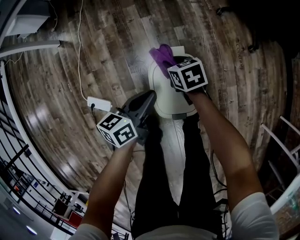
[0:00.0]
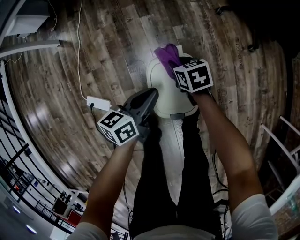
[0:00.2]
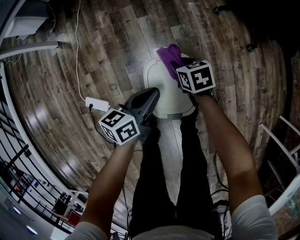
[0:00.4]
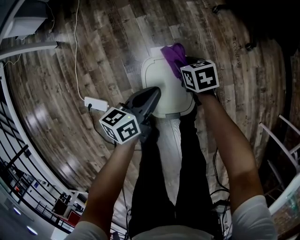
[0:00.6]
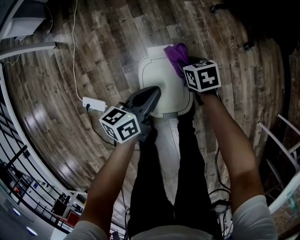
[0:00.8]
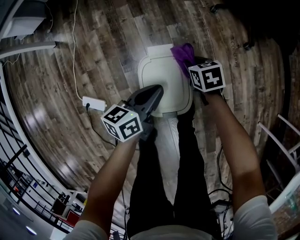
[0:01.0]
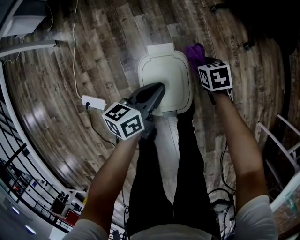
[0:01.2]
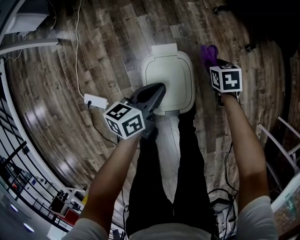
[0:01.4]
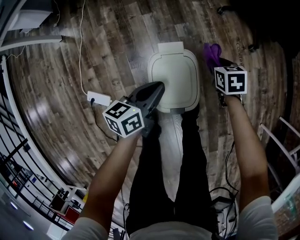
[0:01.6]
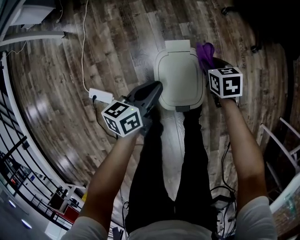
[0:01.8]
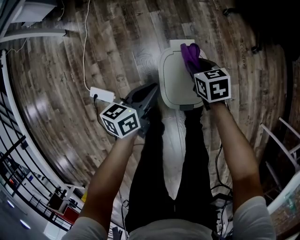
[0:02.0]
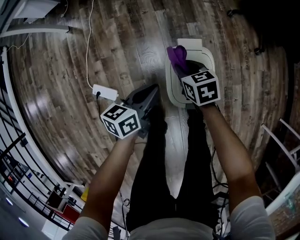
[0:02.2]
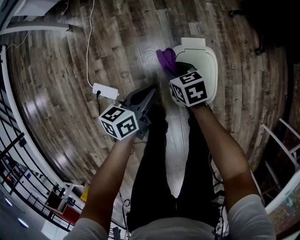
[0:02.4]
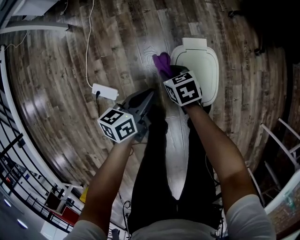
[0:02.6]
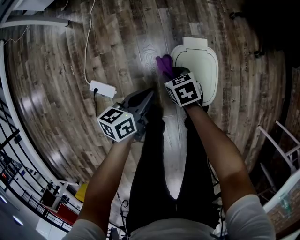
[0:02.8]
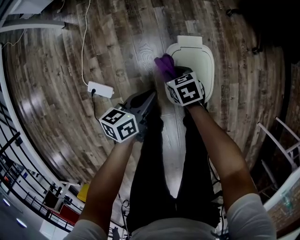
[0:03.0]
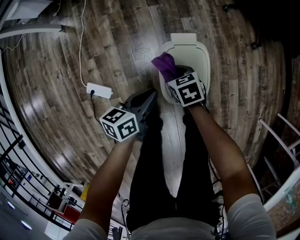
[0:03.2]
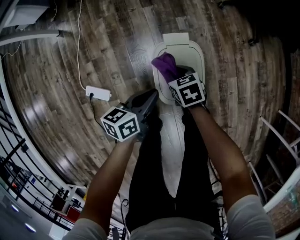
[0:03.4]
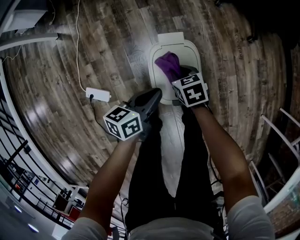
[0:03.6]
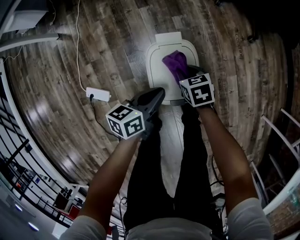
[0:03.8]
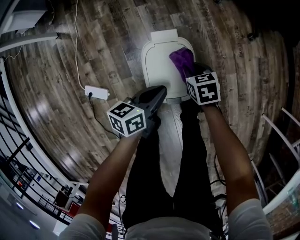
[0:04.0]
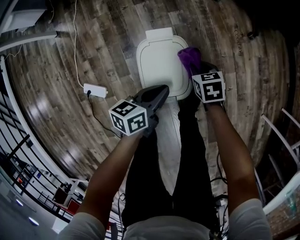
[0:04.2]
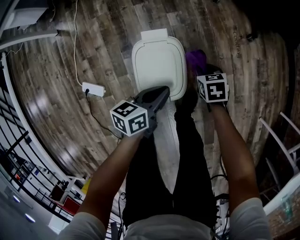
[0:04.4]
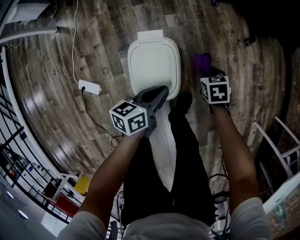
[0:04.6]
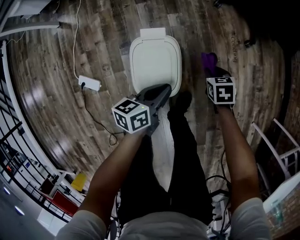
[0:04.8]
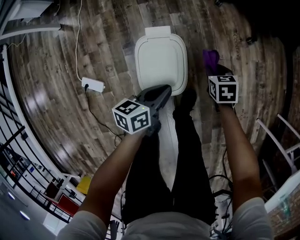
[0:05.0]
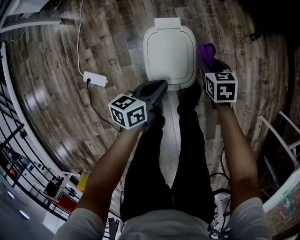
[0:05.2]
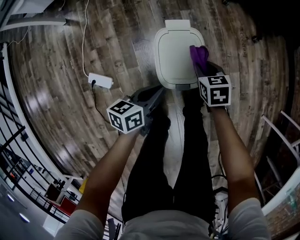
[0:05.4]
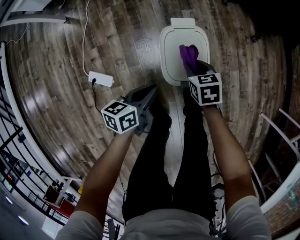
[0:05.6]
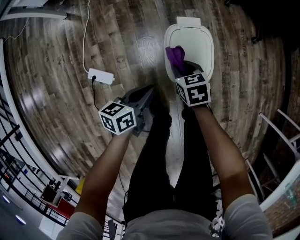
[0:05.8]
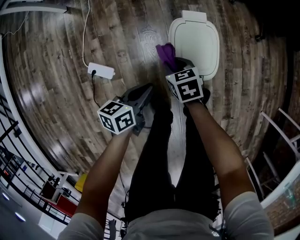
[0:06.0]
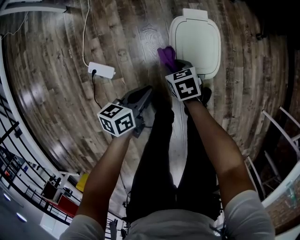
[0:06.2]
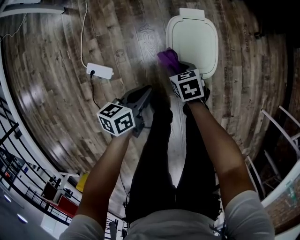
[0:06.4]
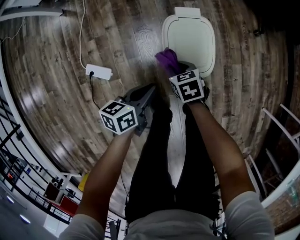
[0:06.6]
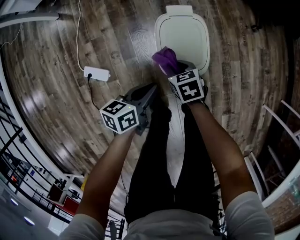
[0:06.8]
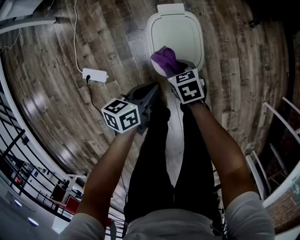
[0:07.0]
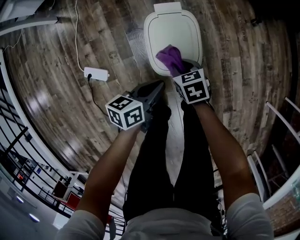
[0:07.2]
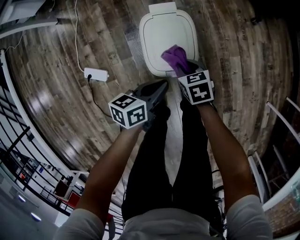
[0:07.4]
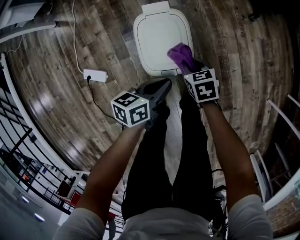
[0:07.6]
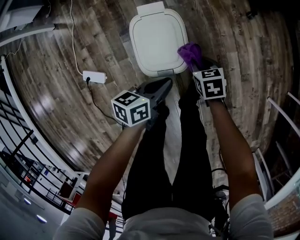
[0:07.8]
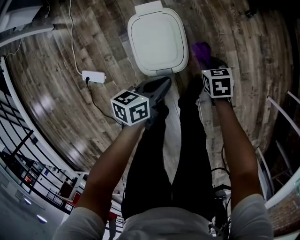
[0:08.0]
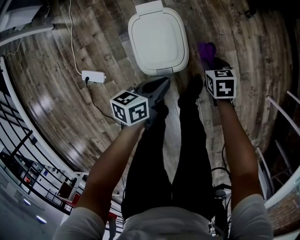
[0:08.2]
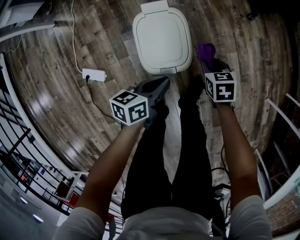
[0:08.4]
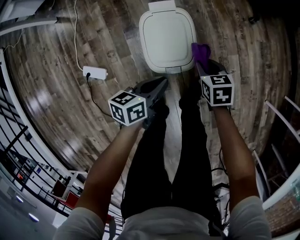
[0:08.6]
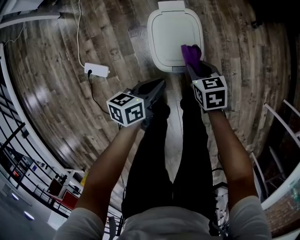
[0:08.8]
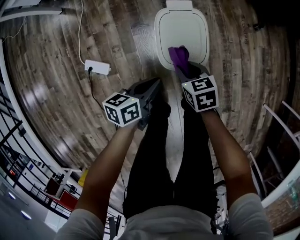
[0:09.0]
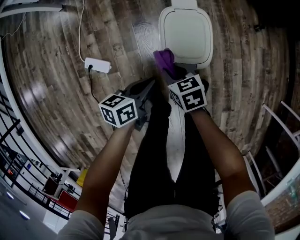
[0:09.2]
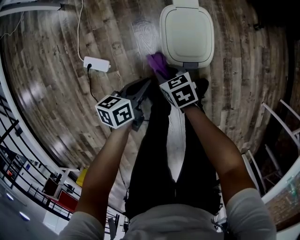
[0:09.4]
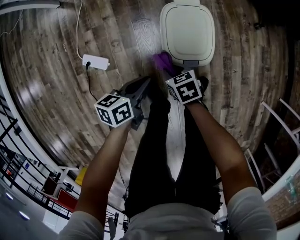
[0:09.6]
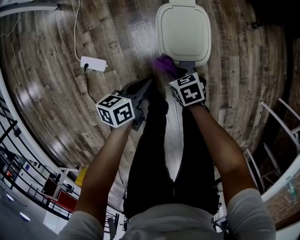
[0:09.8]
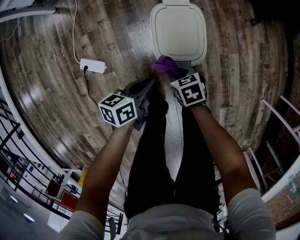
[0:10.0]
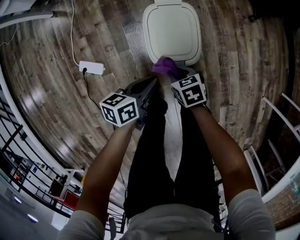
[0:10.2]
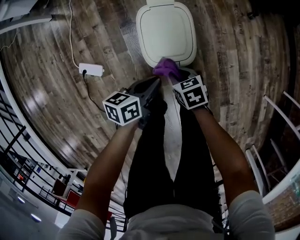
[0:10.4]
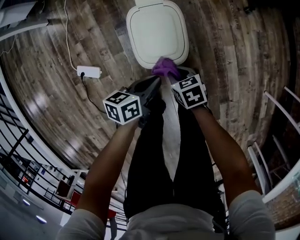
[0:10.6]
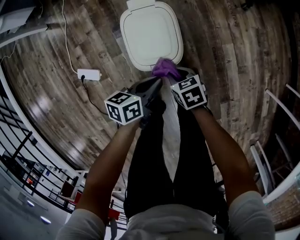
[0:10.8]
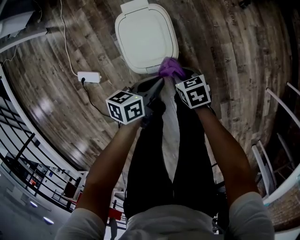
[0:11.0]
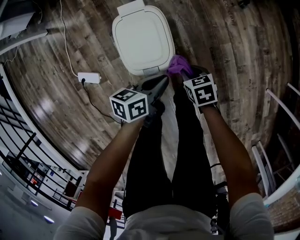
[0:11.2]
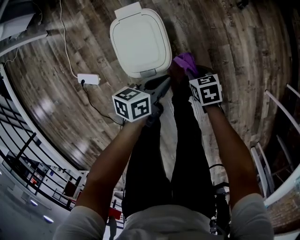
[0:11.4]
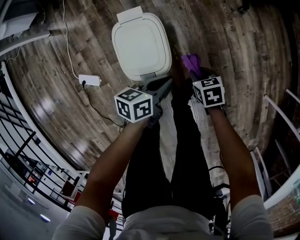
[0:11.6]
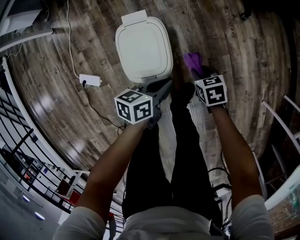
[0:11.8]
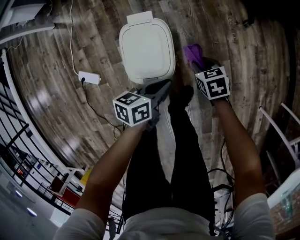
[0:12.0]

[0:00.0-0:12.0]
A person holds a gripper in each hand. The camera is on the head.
0:01.6 to 0:03.0: The left gripper shifts by about 10 cm.
0:03.0 to 0:04.4: The left gripper changes place by roughly 20 cm.
0:04.4 to 0:06.0: The left gripper shifts by about 25 cm.
0:06.0 to 0:07.6: The left gripper moves about 20 cm.
0:07.6 to 0:09.0: The left gripper moves roughly 10 cm.
0:09.0 to 0:10.4: The left gripper moves approximately 5 cm.
0:10.4 to 0:12.0: The left gripper shifts by some 15 cm.

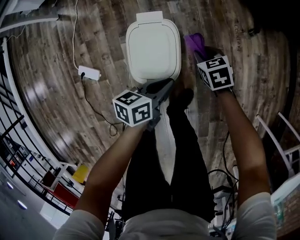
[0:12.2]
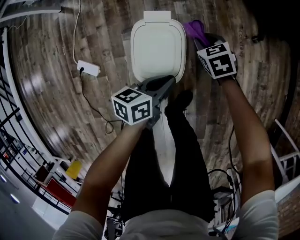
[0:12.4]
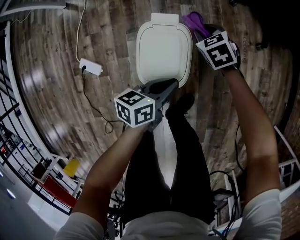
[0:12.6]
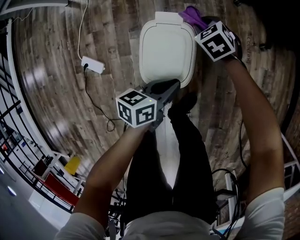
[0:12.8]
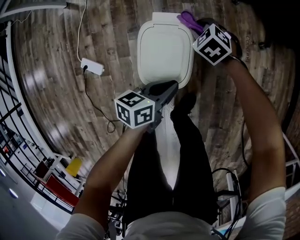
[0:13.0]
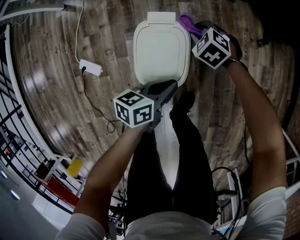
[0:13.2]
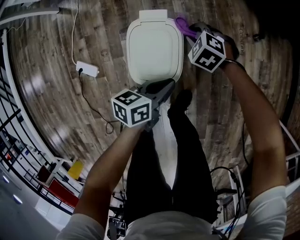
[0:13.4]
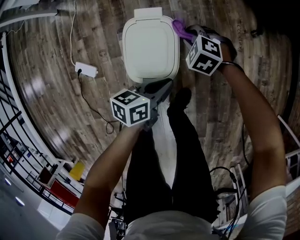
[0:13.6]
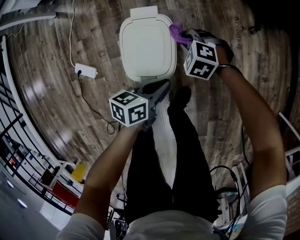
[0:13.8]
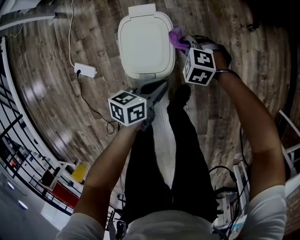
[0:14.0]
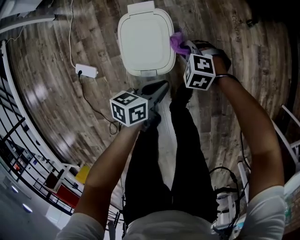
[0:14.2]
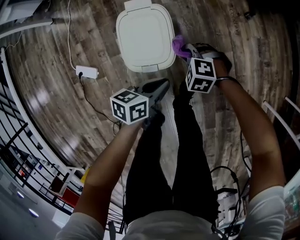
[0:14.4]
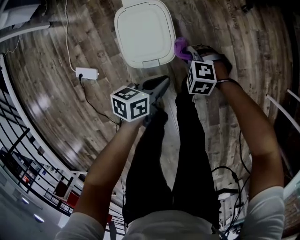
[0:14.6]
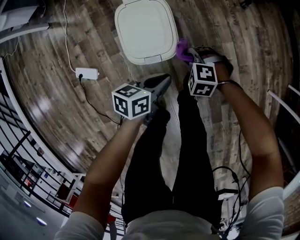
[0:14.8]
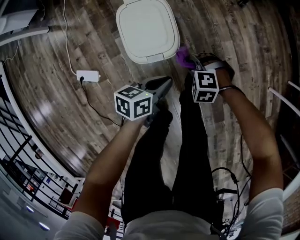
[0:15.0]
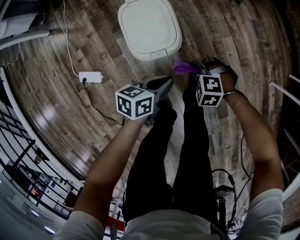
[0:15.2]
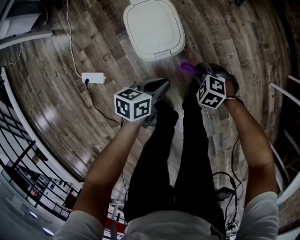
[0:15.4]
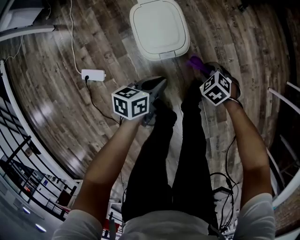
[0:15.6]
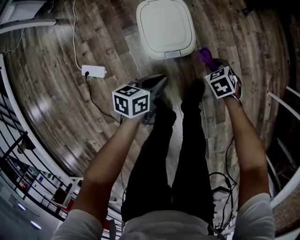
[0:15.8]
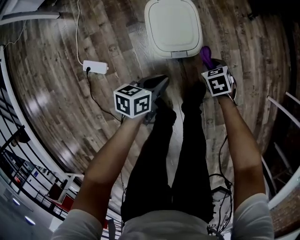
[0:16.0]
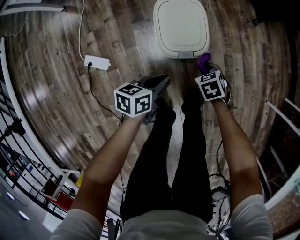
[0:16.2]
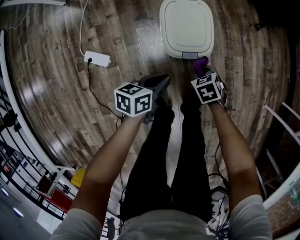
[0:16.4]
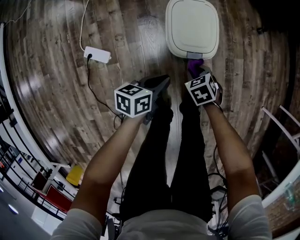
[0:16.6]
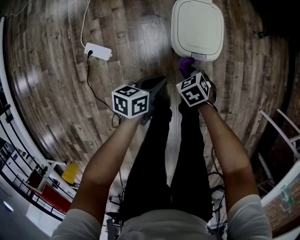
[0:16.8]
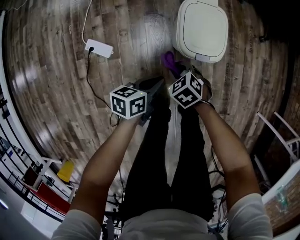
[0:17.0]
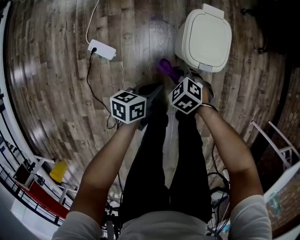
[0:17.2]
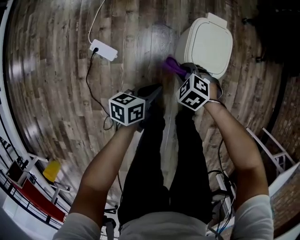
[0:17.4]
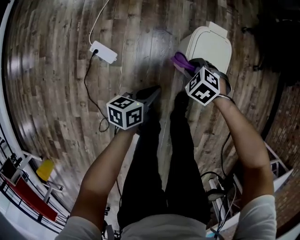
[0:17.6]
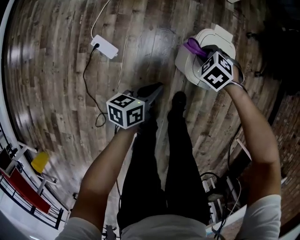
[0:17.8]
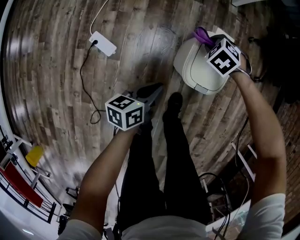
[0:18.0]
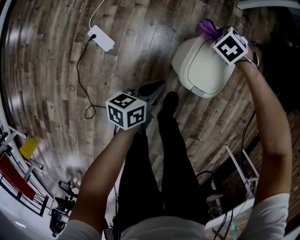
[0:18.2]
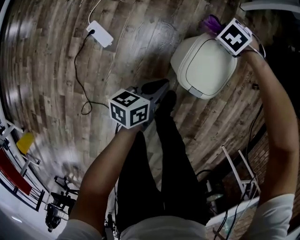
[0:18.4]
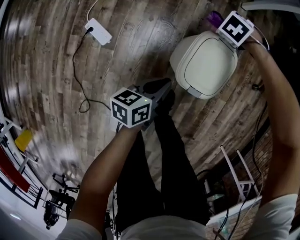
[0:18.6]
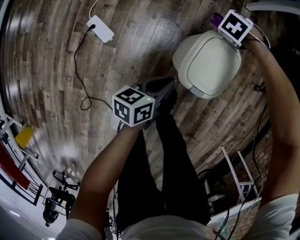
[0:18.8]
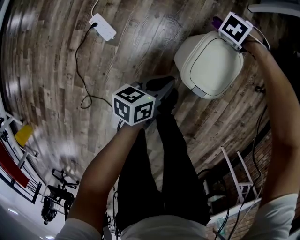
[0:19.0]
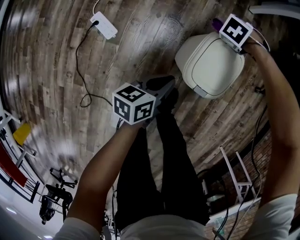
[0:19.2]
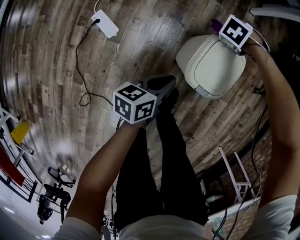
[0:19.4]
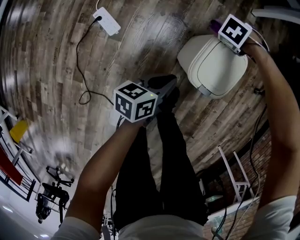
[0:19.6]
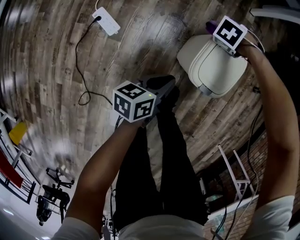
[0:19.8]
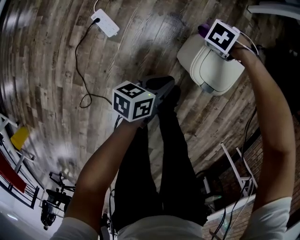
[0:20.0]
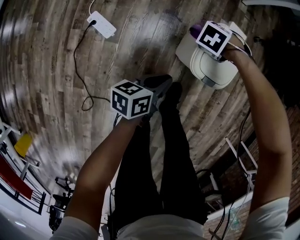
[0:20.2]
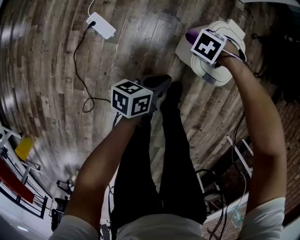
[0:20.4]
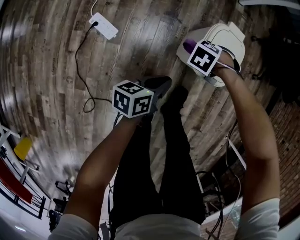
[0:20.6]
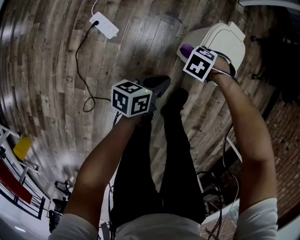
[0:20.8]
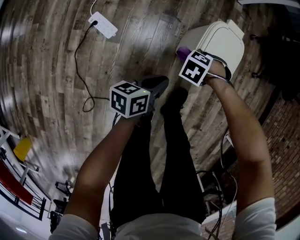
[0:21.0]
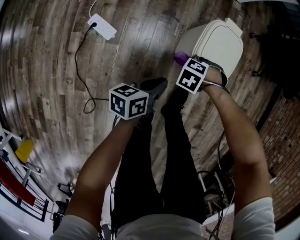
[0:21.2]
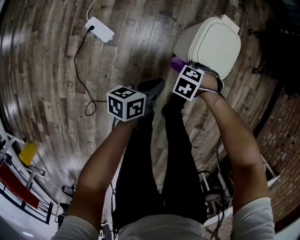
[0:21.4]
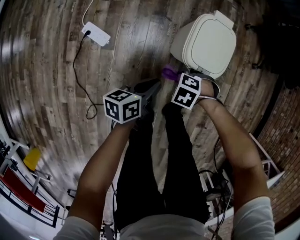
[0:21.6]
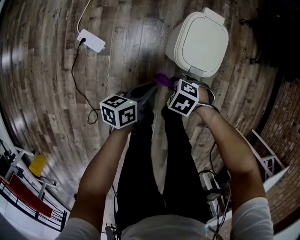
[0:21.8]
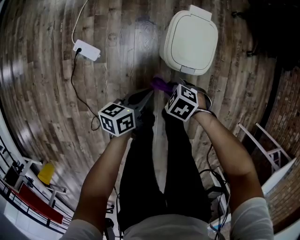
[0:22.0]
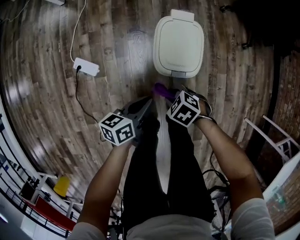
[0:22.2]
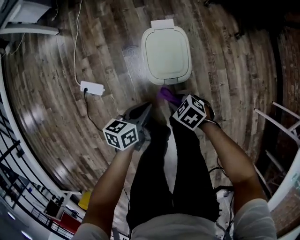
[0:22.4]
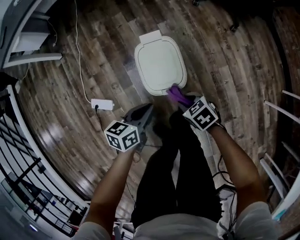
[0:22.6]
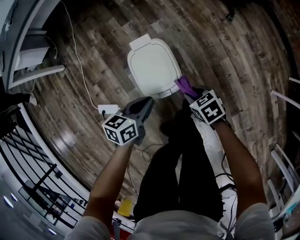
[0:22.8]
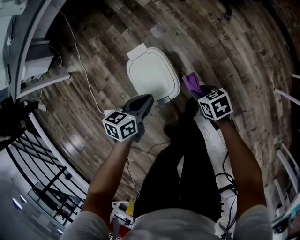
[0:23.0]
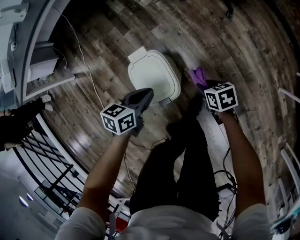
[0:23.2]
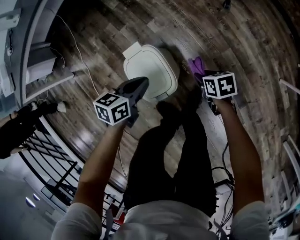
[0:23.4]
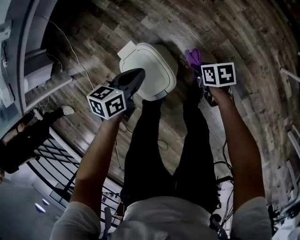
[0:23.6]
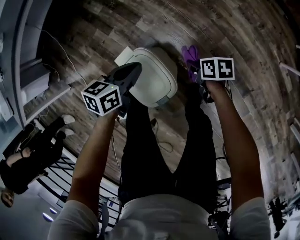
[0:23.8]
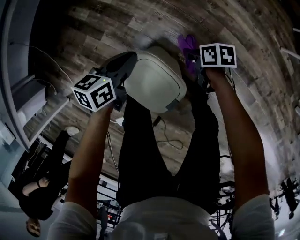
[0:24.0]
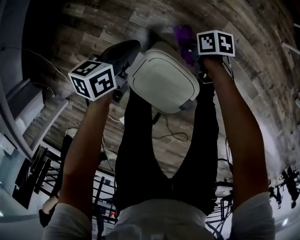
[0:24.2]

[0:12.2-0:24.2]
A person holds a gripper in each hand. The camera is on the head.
0:13.8 to 0:15.2: The left gripper ends up some 10 cm from where it was.
0:15.2 to 0:16.6: The left gripper shifts by some 15 cm.
0:16.6 to 0:18.2: The left gripper changes place by about 10 cm, and turns by roughly 30 degrees.
0:19.8 to 0:21.2: The left gripper shifts by approximately 5 cm.
0:21.2 to 0:22.6: The left gripper moves some 15 cm, and turns by approximately 30 degrees.
0:22.6 to 0:24.2: The left gripper ends up about 35 cm from where it was, and turns by approximately 40 degrees.
